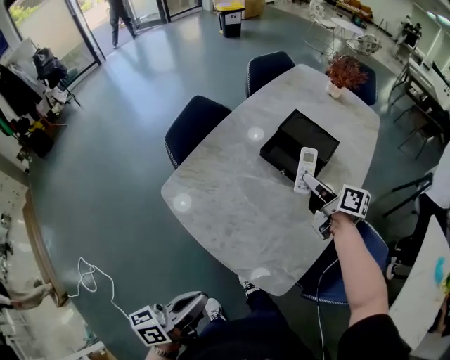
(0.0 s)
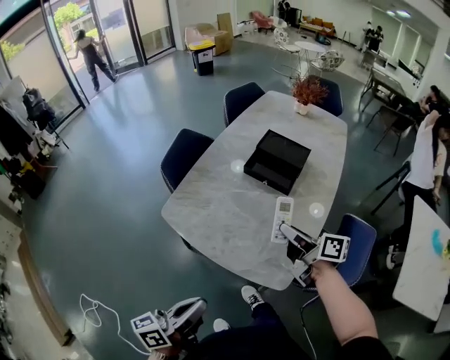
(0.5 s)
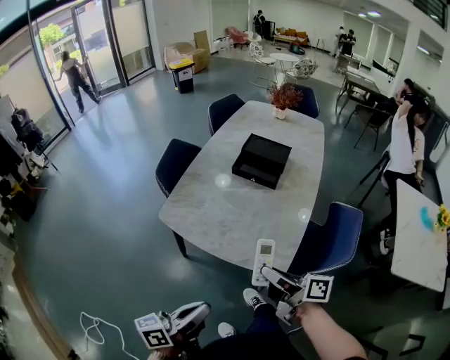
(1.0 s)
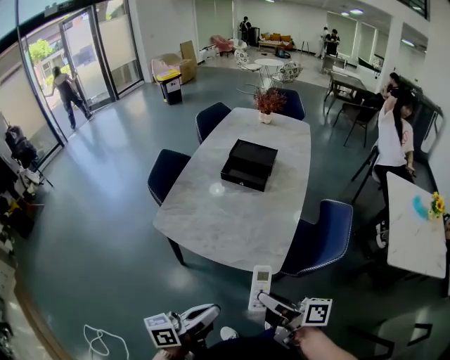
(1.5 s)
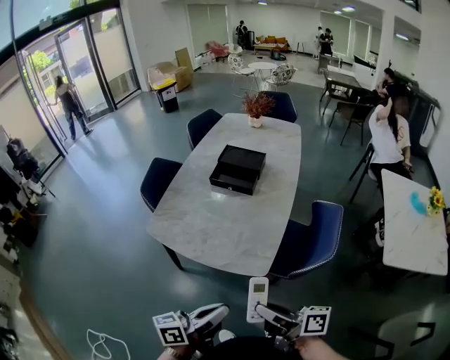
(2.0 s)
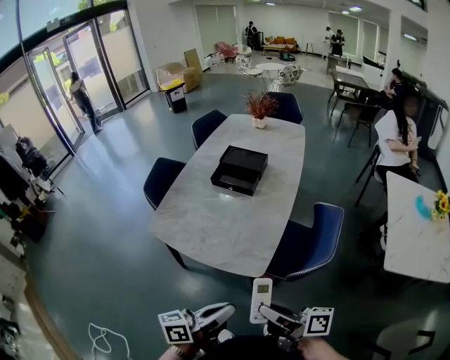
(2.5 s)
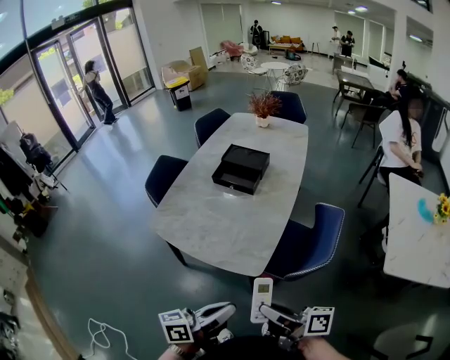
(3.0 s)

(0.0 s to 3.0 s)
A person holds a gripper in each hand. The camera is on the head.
0.0 s - 1.5 s: The right gripper shifts about 50 cm backward, and turns by about 20 degrees. The left gripper moves backward, approximately 10 cm, and changes its angle by about 30 degrees.
1.5 s - 3.0 s: The grippers both shift to the right by roughly 10 cm.

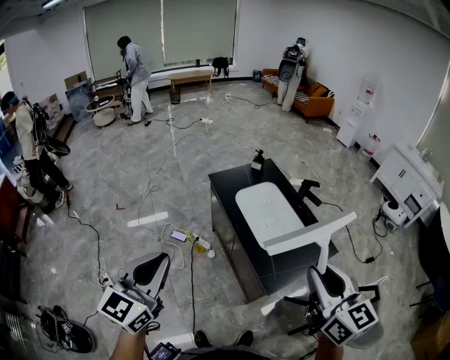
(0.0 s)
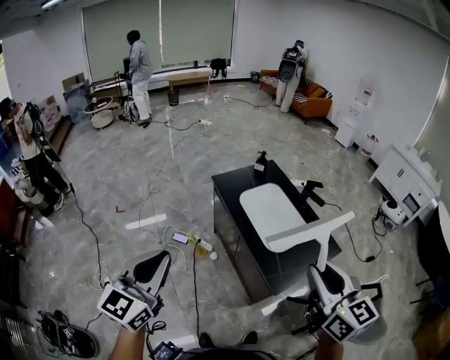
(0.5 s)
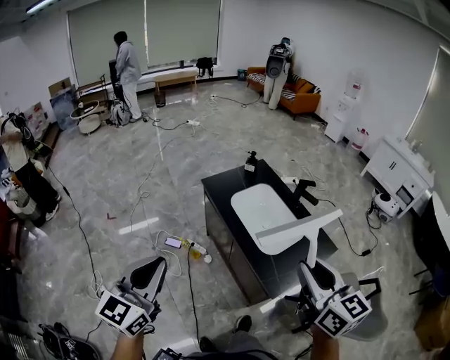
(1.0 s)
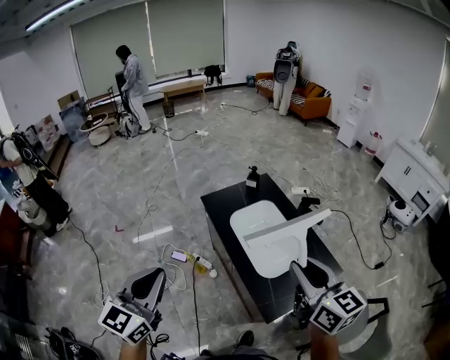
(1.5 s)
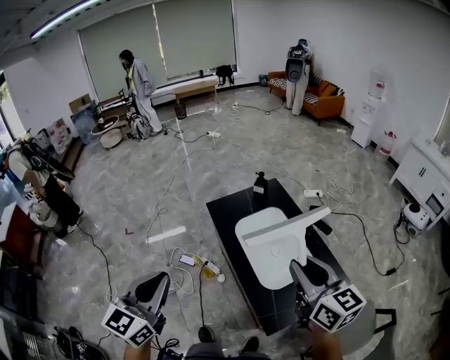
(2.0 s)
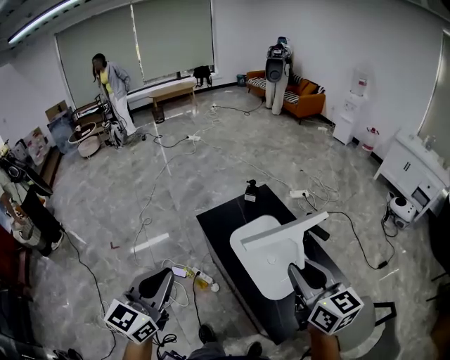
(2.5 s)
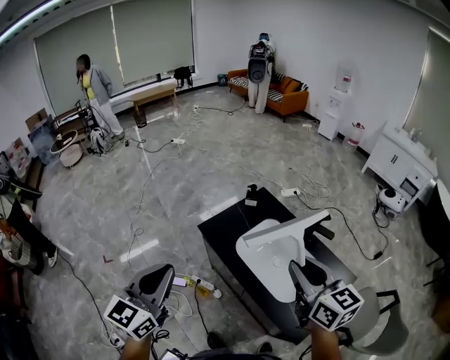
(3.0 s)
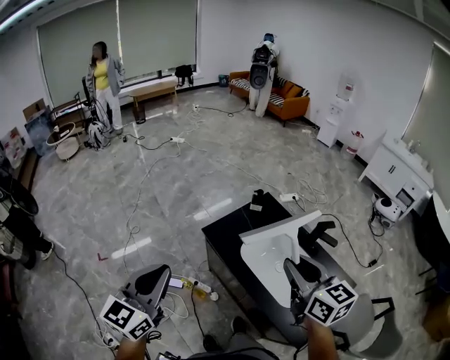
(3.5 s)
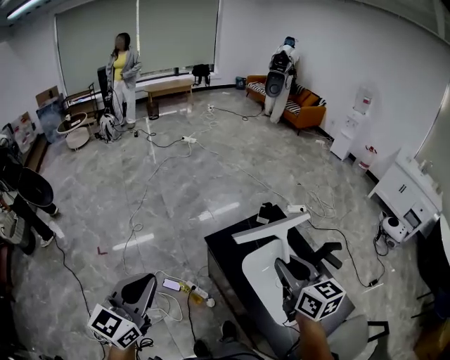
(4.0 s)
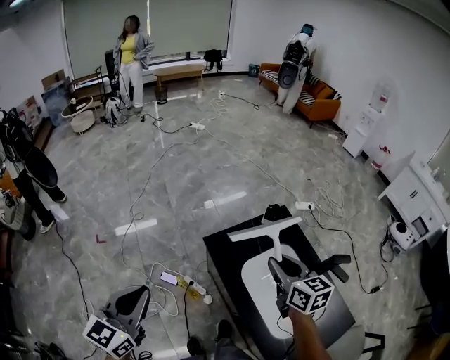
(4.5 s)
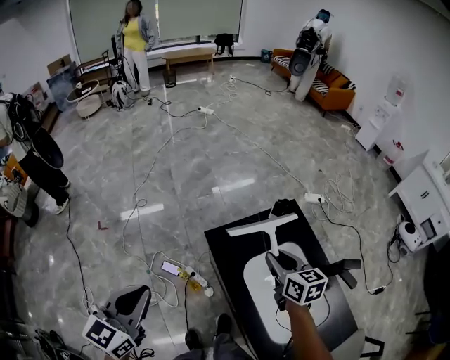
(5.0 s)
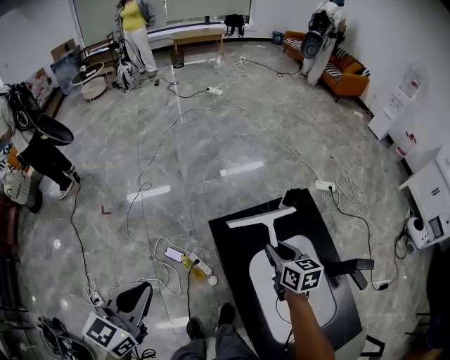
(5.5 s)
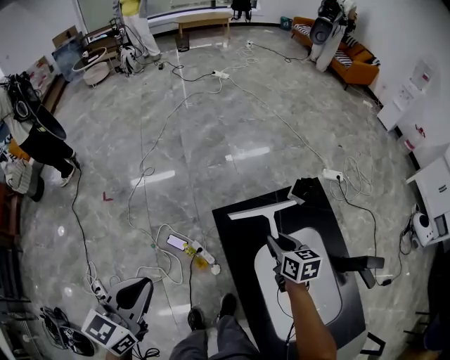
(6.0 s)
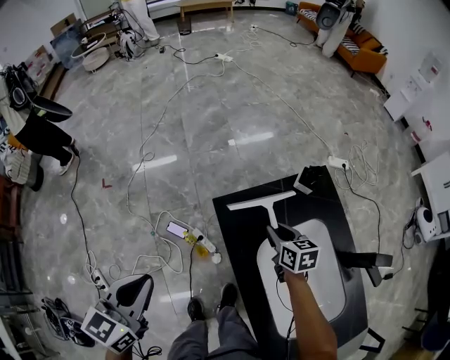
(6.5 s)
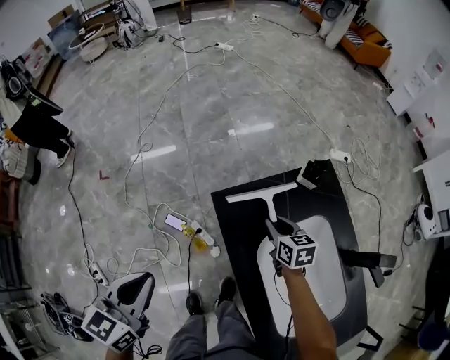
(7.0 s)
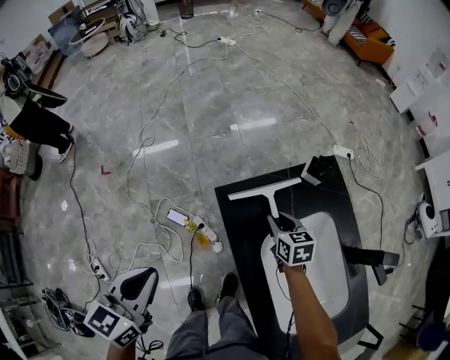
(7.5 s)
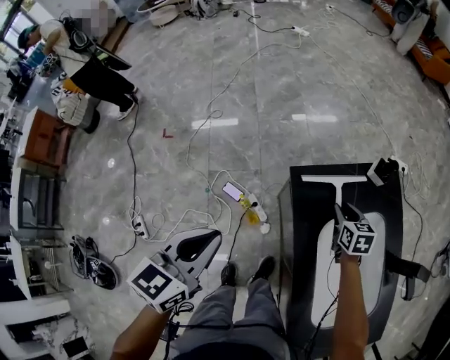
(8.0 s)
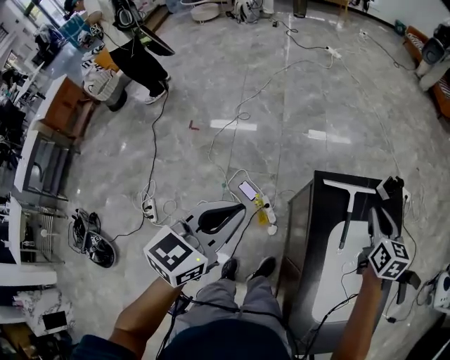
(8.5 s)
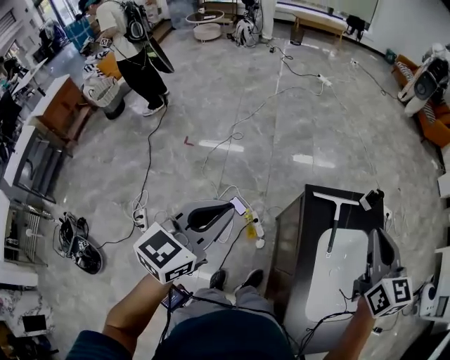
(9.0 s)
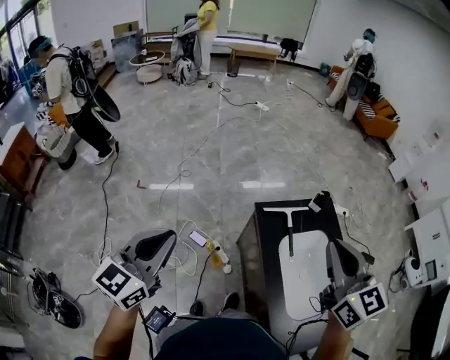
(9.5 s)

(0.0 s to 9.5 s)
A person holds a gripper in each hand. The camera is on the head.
0.0 s - 2.0 s: The left gripper moves forward and to the right, roughly 20 cm; the right gripper moves forward, some 25 cm.
2.0 s - 4.0 s: Both grippers move forward and to the left, some 35 cm.
4.0 s - 5.5 s: The left gripper travels downward and forward by some 20 cm. The right gripper shifts roughly 35 cm downward and forward, and rotates about 20 degrees.
5.5 s - 7.5 s: The two grippers go roughly 15 cm downward.
7.5 s - 9.5 s: The left gripper travels upward, backward and to the left by some 35 cm, and changes its angle by about 20 degrees, while the right gripper goes roughly 60 cm upward and backward, tilts its fingers roughly 30 degrees upward, and closes its fingers.

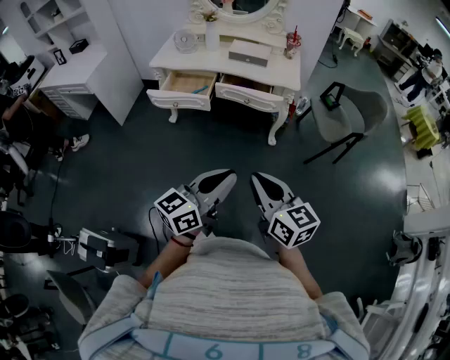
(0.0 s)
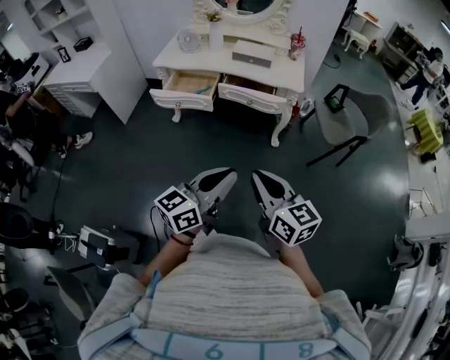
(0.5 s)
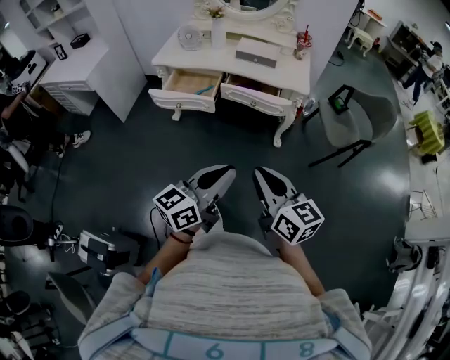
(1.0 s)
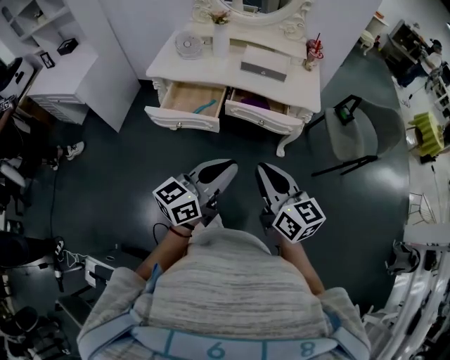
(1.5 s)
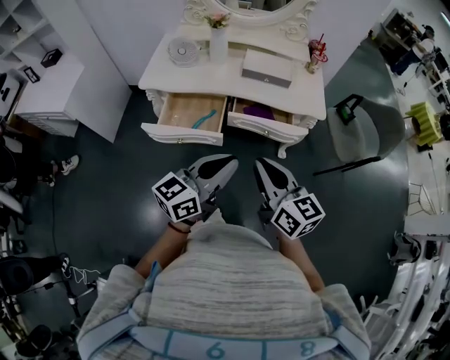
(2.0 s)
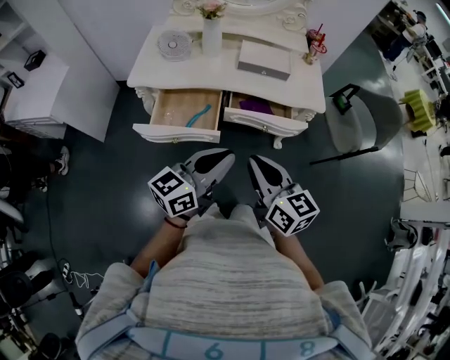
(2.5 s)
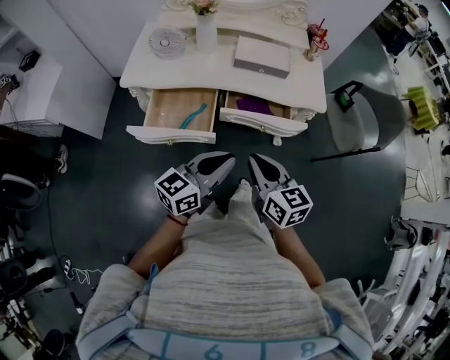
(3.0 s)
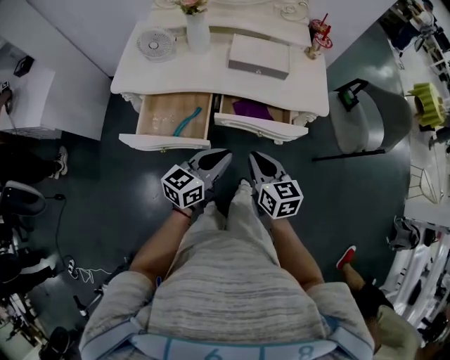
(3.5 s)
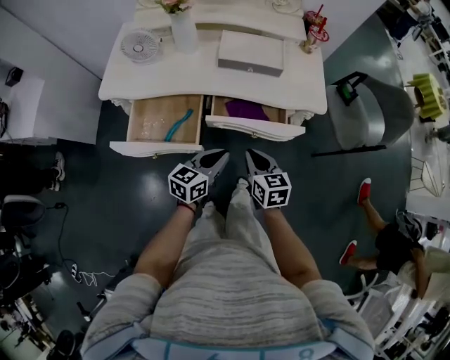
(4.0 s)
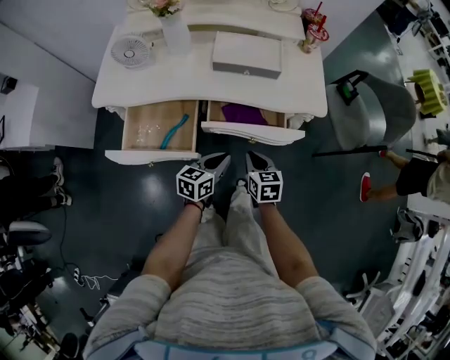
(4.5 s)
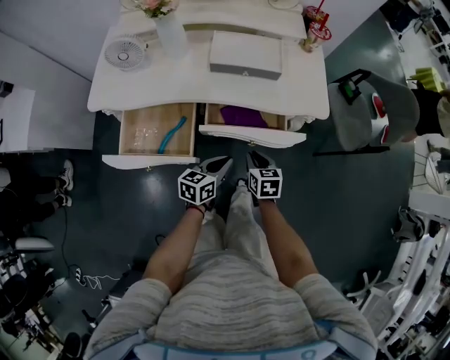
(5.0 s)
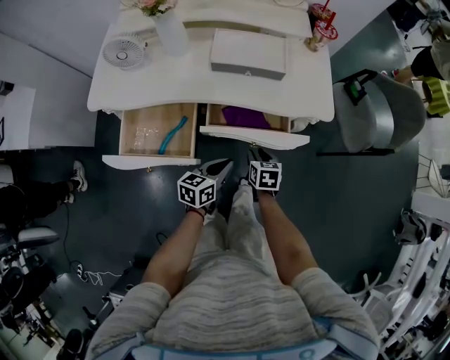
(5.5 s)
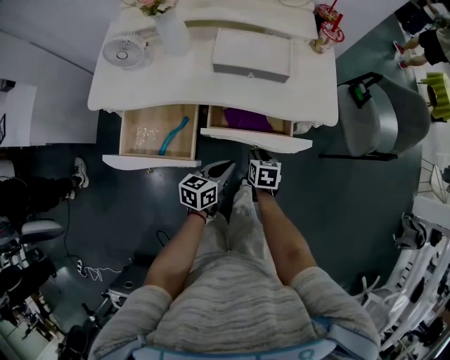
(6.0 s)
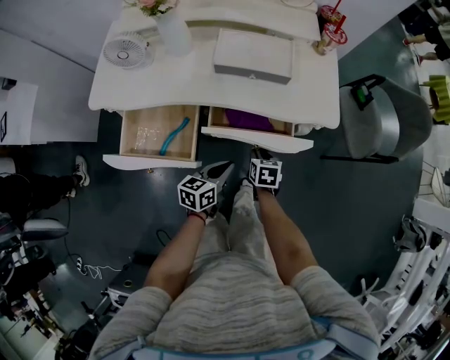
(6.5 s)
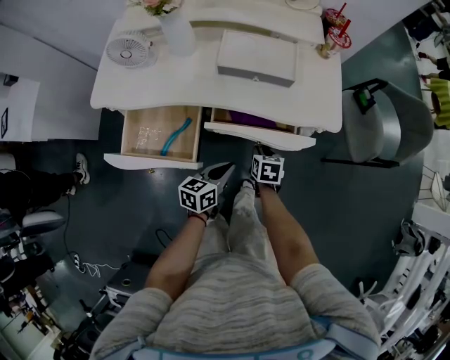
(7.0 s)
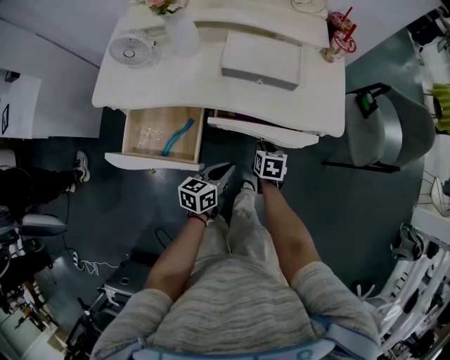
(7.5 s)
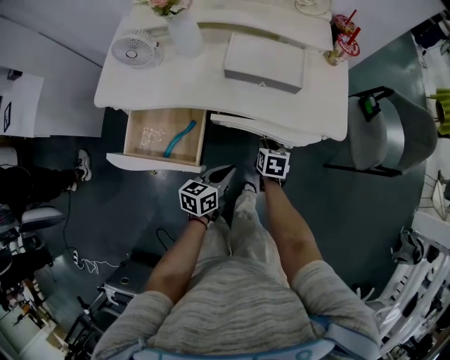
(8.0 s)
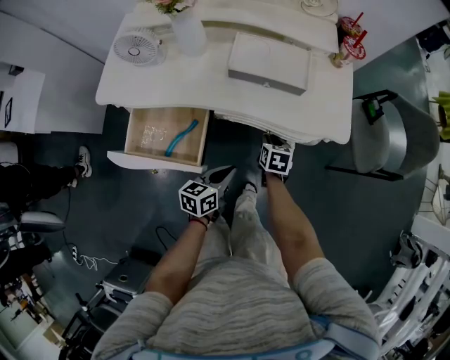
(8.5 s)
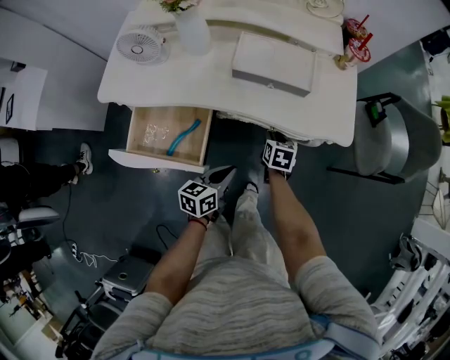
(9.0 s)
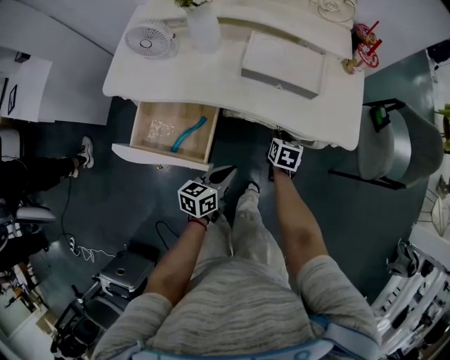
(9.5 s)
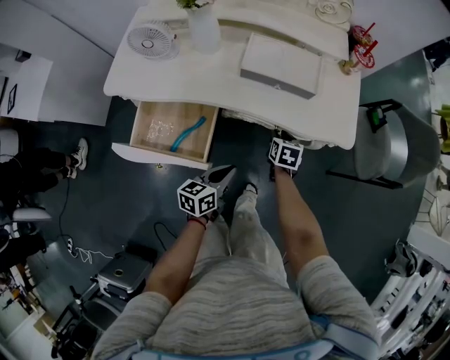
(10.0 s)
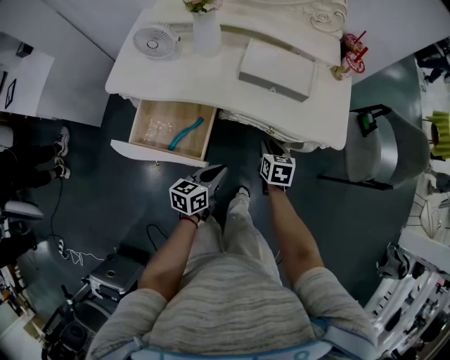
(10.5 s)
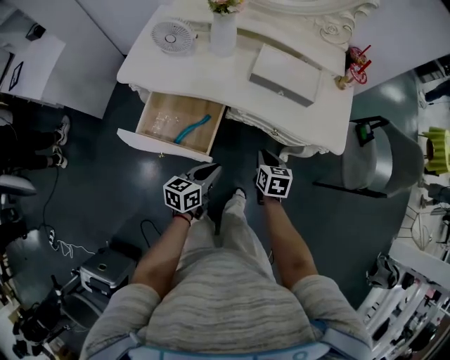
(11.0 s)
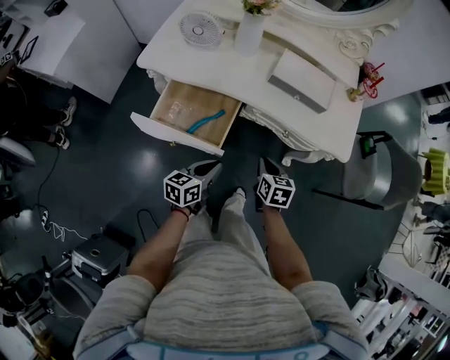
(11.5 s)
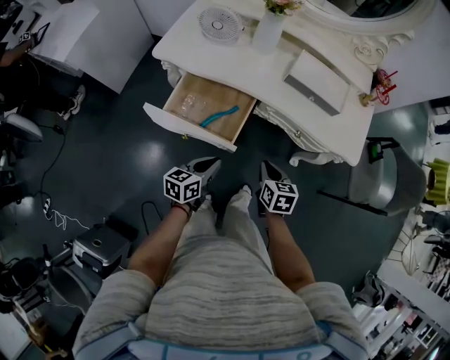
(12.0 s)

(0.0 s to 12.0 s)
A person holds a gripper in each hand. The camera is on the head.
0.0 s - 2.0 s: Both grippers travel together forward and to the left, roughly 35 cm.
2.0 s - 4.0 s: Both grippers travel together downward and forward, roughly 30 cm. The left gripper swivels about 20 degrees; the right gripper swivels some 30 degrees.
4.0 s - 6.0 s: The left gripper goes approximately 10 cm downward; the right gripper travels downward and forward by some 20 cm, changes its angle by about 30 degrees, and opens up.
6.0 s - 8.0 s: The right gripper heads forward, covering approximately 5 cm.
8.0 s - 10.0 s: The grippers make only small movements.
10.0 s - 12.0 s: The right gripper shifts some 25 cm backward, to the left and upward, rotates some 20 degrees, and closes up; the left gripper goes about 15 cm to the left and backward.

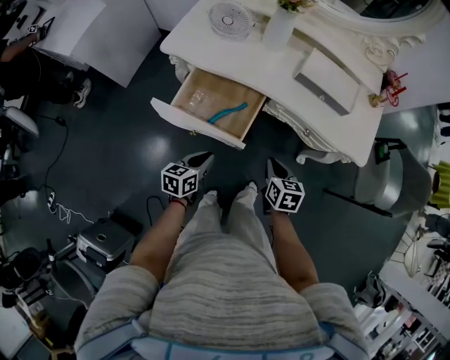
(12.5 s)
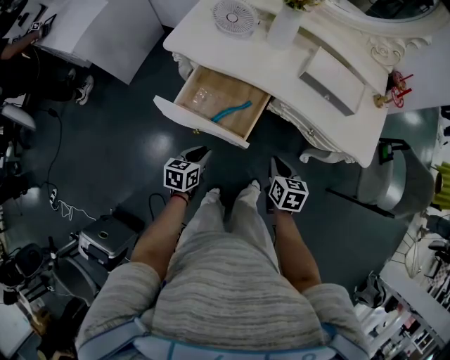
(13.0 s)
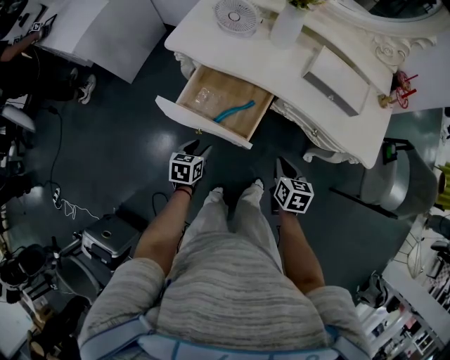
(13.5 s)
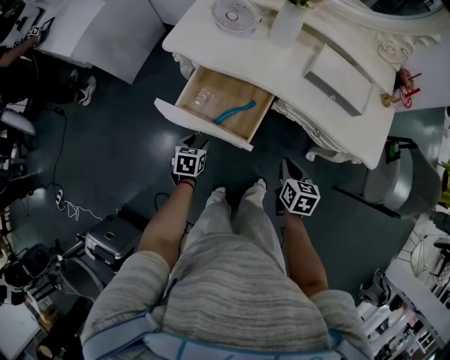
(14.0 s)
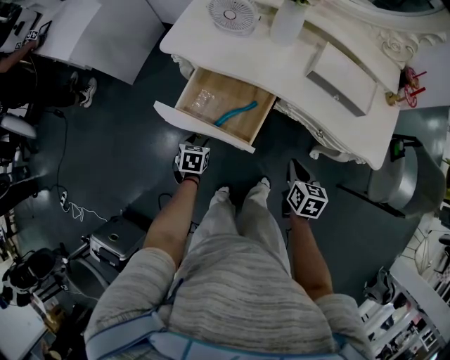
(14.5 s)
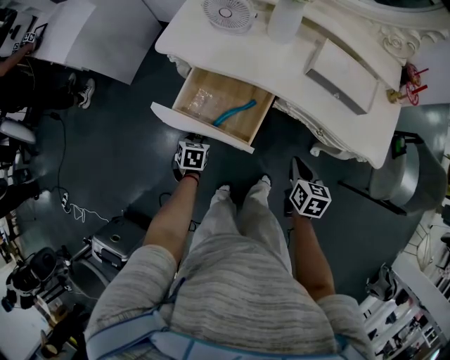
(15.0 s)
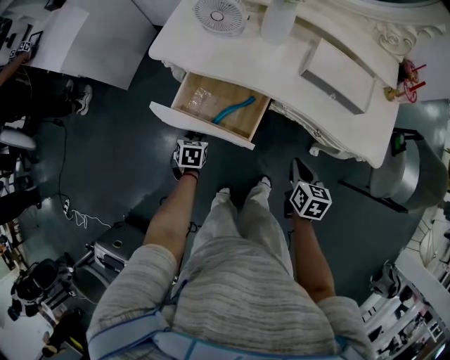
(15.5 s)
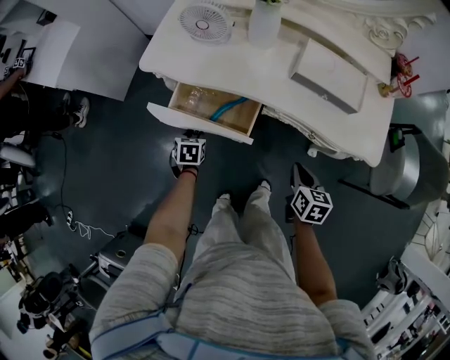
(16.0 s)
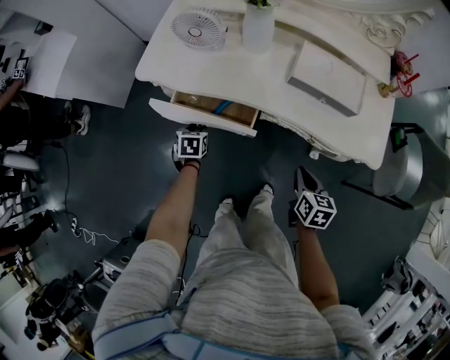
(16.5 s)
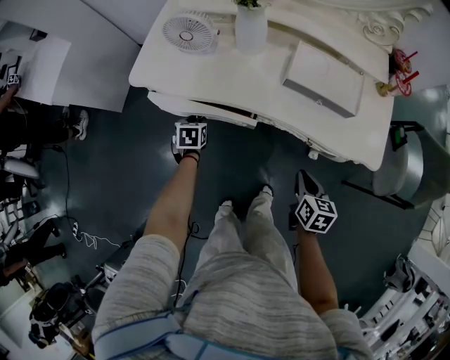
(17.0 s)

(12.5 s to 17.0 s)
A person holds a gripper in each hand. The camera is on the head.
12.5 s - 14.5 s: The left gripper heads downward, to the left and forward, covering approximately 15 cm, swivels roughly 30 degrees, and opens up.
14.5 s - 17.0 s: The left gripper heads forward, covering about 20 cm, while the right gripper is displaced to the right by approximately 5 cm.